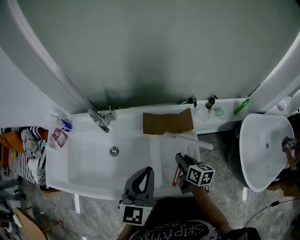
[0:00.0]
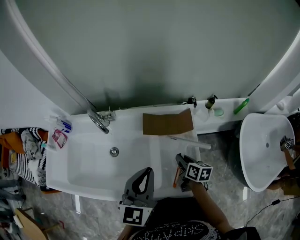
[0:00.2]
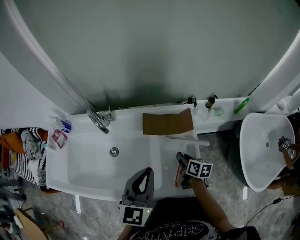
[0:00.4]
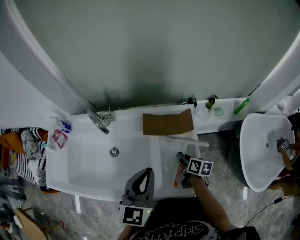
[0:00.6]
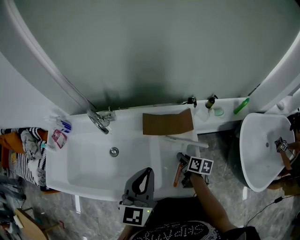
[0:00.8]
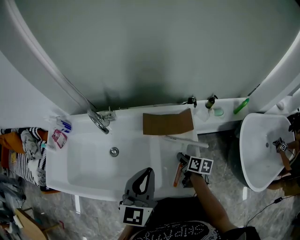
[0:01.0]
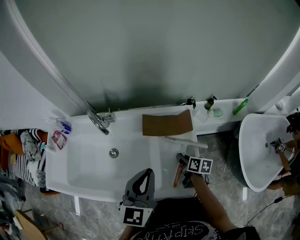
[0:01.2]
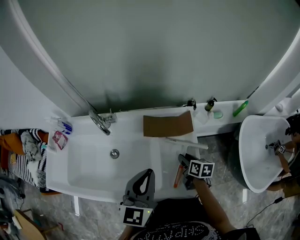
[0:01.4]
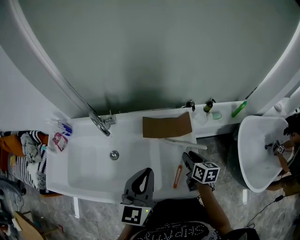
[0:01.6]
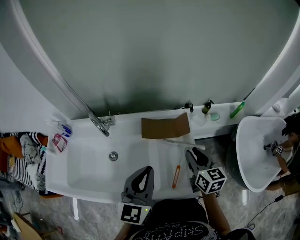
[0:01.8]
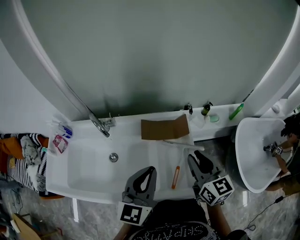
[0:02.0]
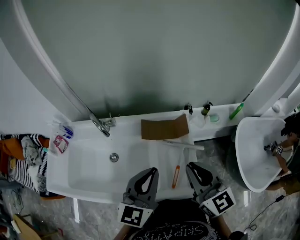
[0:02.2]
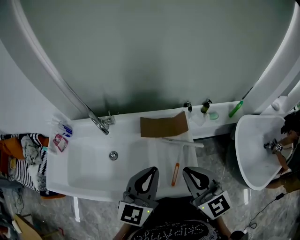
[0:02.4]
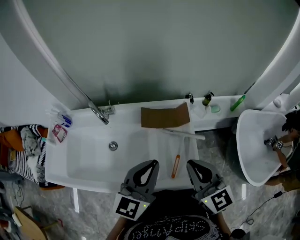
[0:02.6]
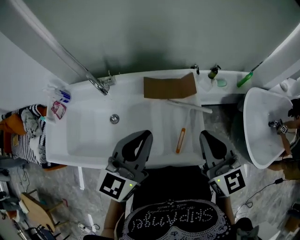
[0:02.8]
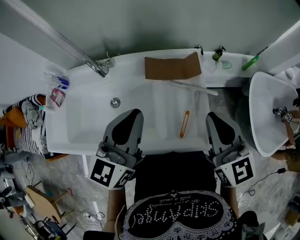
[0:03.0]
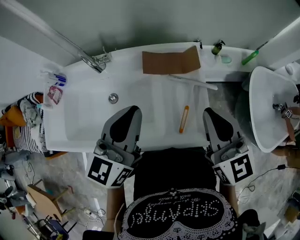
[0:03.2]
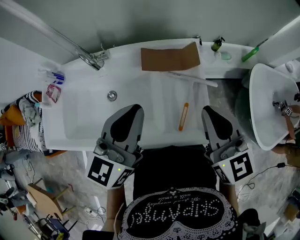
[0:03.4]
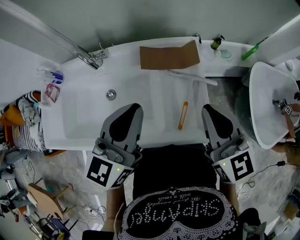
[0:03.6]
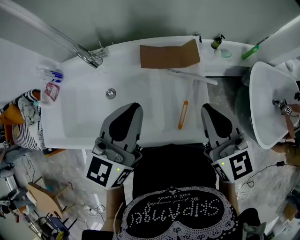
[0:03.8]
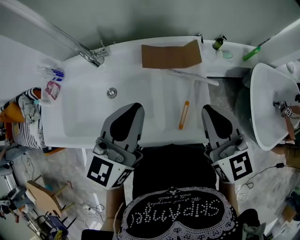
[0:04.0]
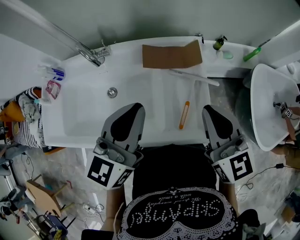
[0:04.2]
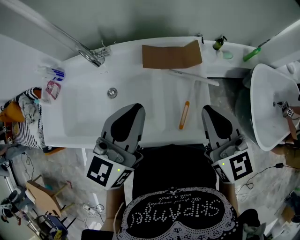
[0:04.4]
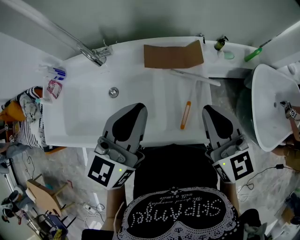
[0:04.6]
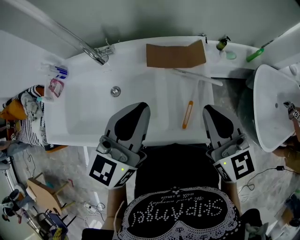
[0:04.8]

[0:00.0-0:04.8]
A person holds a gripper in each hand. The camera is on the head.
0.0 to 1.6 s: The right gripper moves roughly 5 cm downward and comes back.
1.6 to 3.2 s: The right gripper is displaced upward and backward by some 25 cm, changes its angle by approximately 40 degrees, and closes its fingers.
3.2 to 4.8 s: The grippers make only small movements.

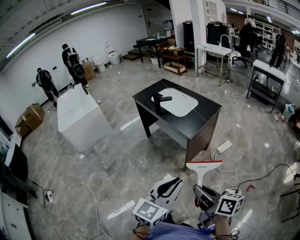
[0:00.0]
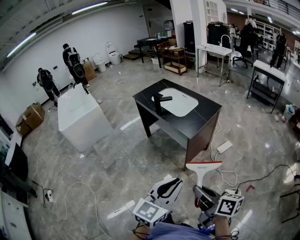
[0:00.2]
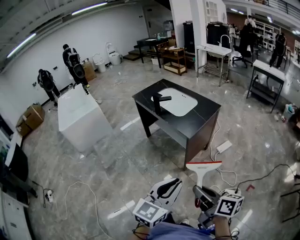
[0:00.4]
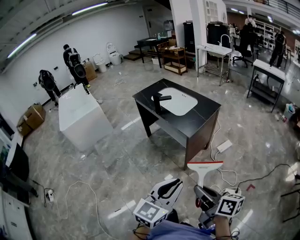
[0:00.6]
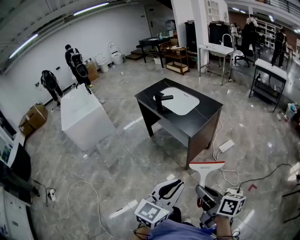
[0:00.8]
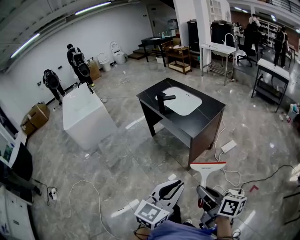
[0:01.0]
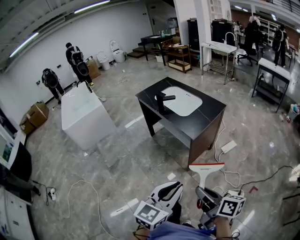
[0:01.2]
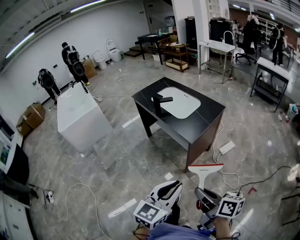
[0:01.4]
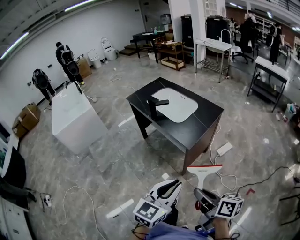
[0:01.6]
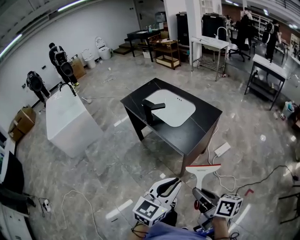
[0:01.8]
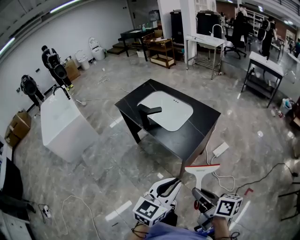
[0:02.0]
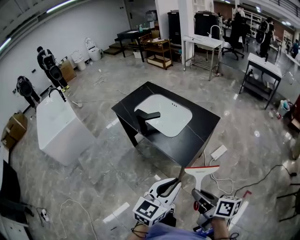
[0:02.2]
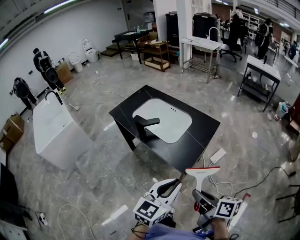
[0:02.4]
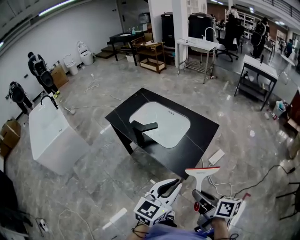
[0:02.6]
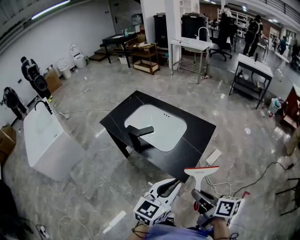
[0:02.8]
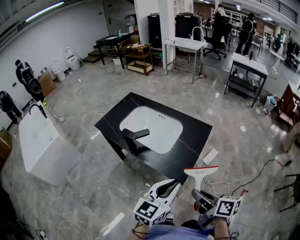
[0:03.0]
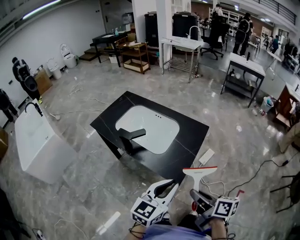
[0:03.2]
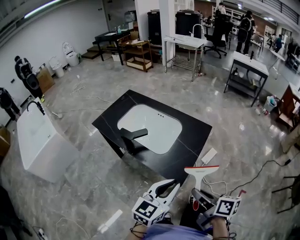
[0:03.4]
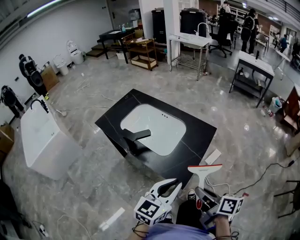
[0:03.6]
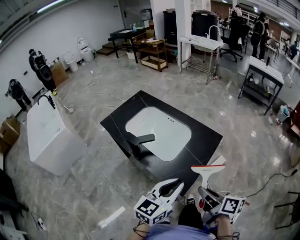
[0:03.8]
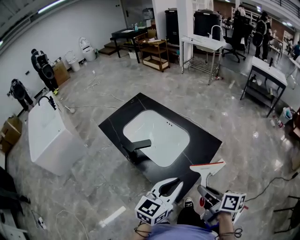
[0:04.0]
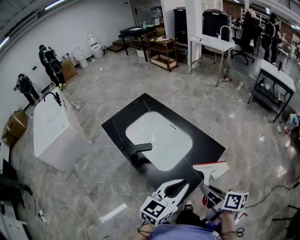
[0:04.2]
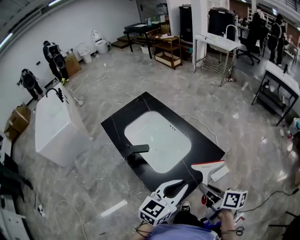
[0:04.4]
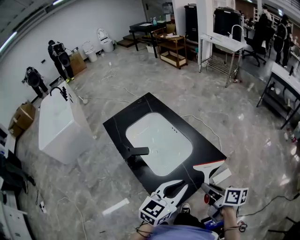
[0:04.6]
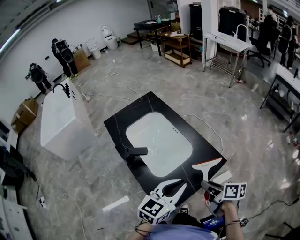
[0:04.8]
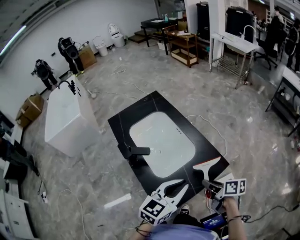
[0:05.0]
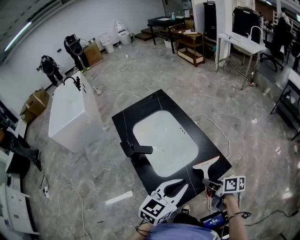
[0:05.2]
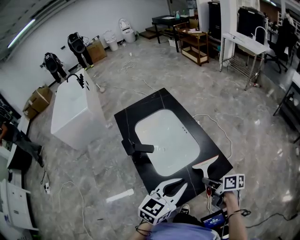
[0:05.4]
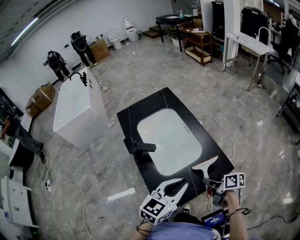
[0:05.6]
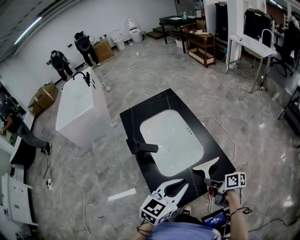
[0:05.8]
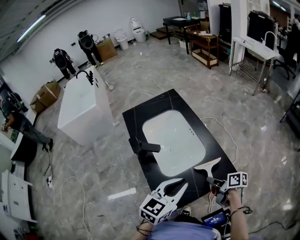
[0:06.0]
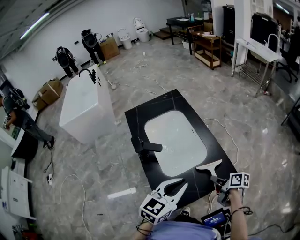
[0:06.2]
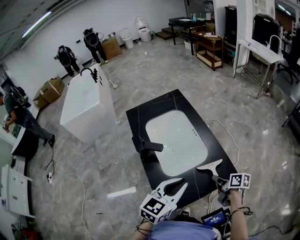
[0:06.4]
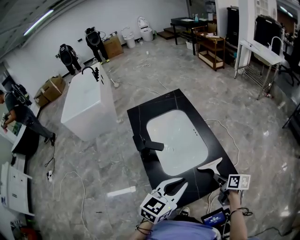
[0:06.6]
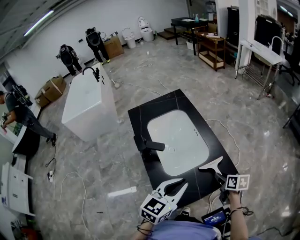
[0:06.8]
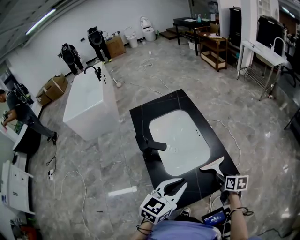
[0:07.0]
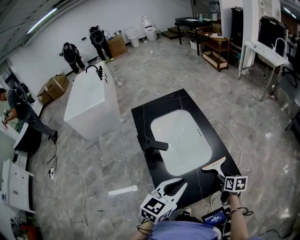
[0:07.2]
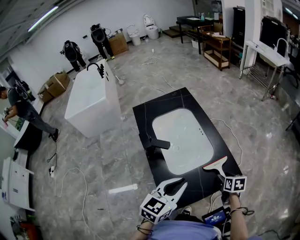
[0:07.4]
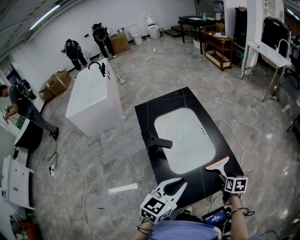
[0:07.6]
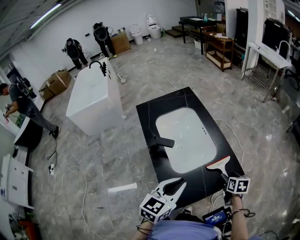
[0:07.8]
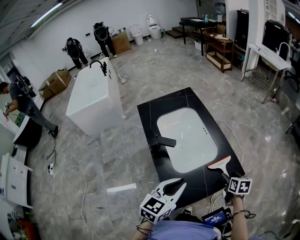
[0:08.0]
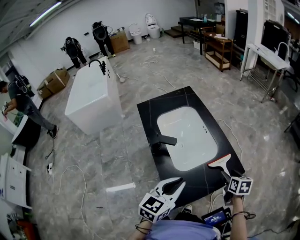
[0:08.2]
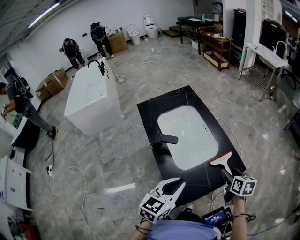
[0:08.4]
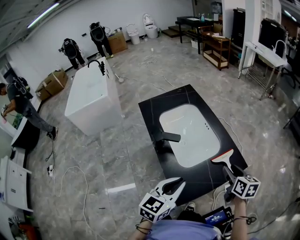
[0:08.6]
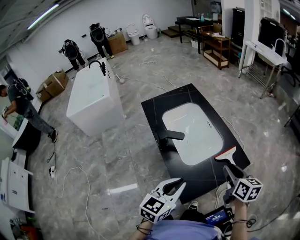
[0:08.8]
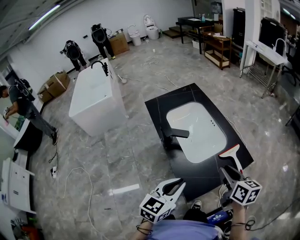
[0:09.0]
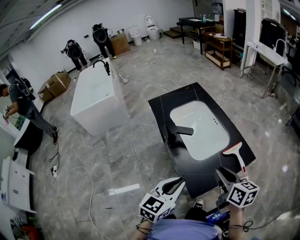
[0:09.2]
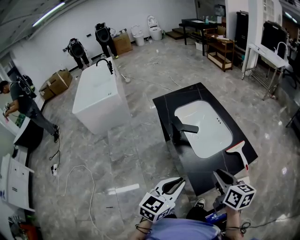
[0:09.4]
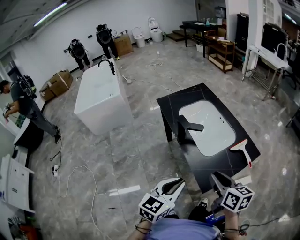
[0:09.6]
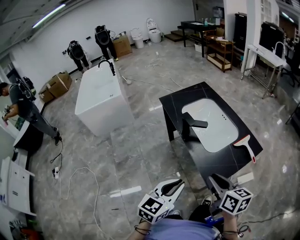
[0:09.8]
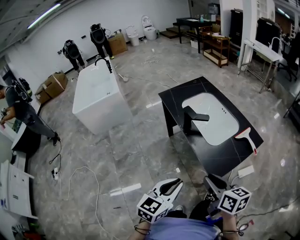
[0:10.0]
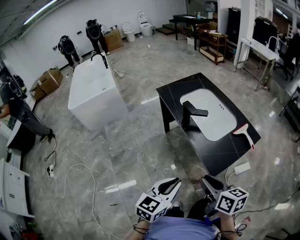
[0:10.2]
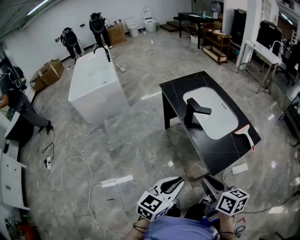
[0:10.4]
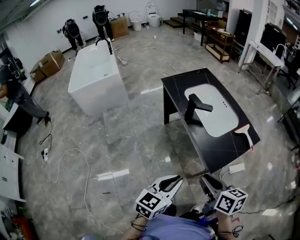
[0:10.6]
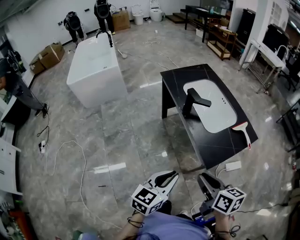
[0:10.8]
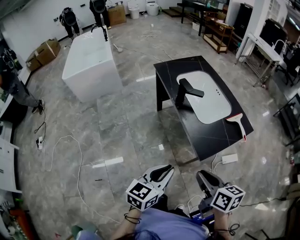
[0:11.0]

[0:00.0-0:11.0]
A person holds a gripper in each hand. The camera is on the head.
0.0 to 1.6 s: The grippers both shift forward by roughly 10 cm.
1.6 to 3.2 s: Both grippers move forward, some 25 cm.
3.2 to 4.8 s: The grippers both shift forward and to the right by roughly 25 cm. The right gripper turns by approximately 30 degrees.
4.8 to 6.2 s: The right gripper is displaced downward and forward by roughly 10 cm.
6.2 to 7.8 s: The left gripper is displaced to the left by about 5 cm. The right gripper swivels about 40 degrees, and opens.
7.8 to 9.4 s: The right gripper moves to the left, upward and backward, about 35 cm, swivels roughly 30 degrees, and closes, while the left gripper is displaced to the left and backward by about 15 cm.
9.4 to 11.0 s: Both grippers move backward and to the left, roughly 20 cm.

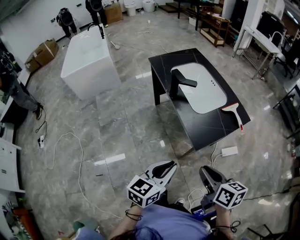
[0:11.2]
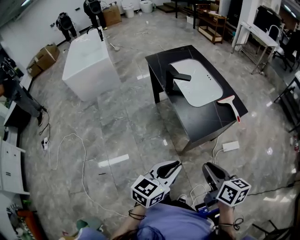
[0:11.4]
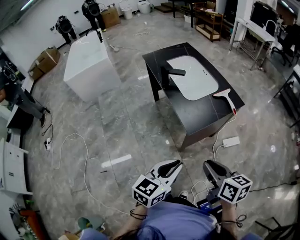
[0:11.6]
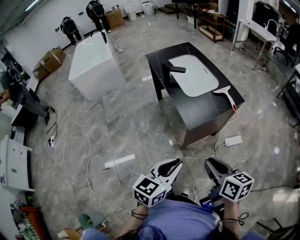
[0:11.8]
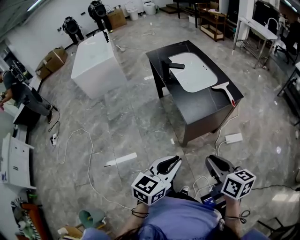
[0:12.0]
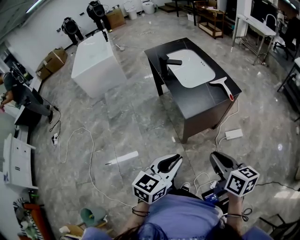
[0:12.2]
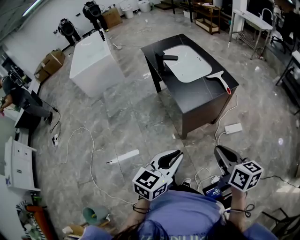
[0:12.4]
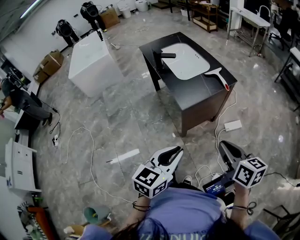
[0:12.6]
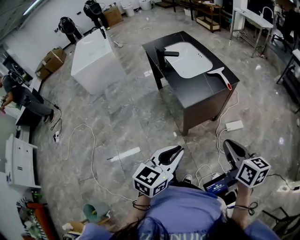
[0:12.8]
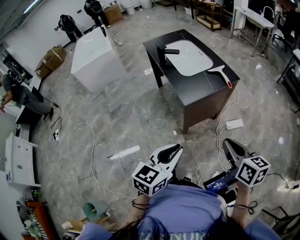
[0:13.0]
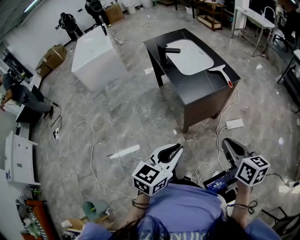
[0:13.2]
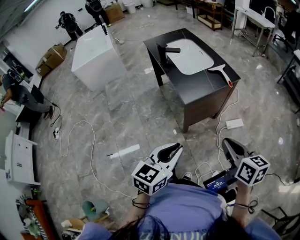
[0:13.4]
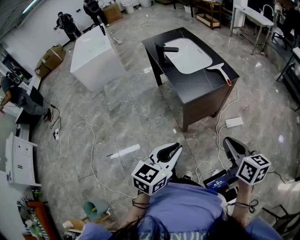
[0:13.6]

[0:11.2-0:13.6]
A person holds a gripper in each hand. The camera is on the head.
11.2 to 12.4 s: The right gripper heads to the right and backward, covering roughly 20 cm. Meanwhile the left gripper goes about 20 cm backward and to the right.
12.4 to 13.6 s: The grippers stay close to where they were, moving slightly.

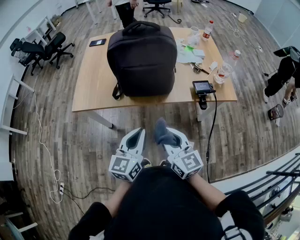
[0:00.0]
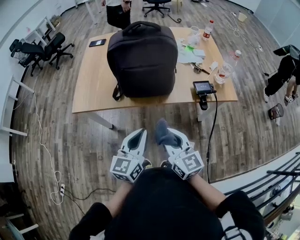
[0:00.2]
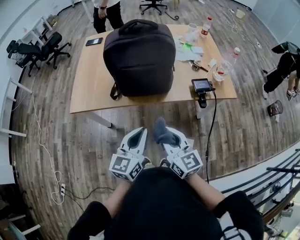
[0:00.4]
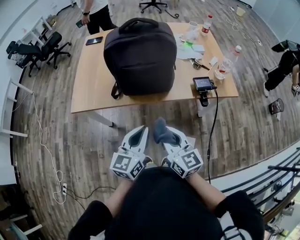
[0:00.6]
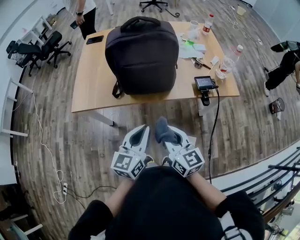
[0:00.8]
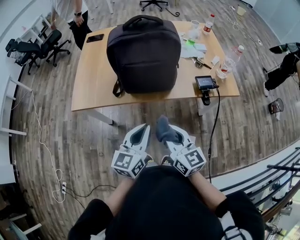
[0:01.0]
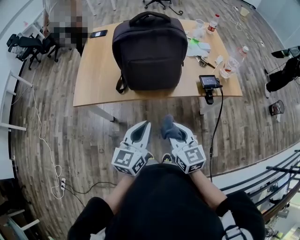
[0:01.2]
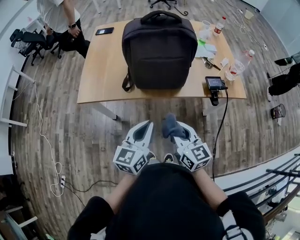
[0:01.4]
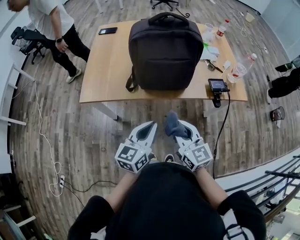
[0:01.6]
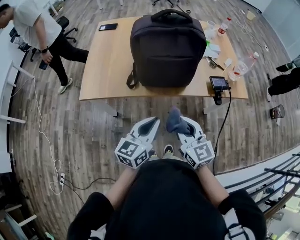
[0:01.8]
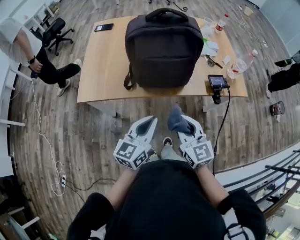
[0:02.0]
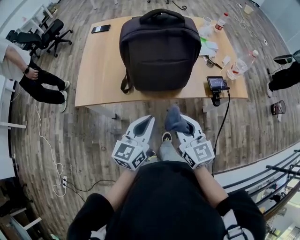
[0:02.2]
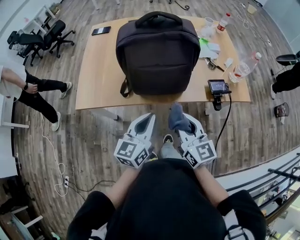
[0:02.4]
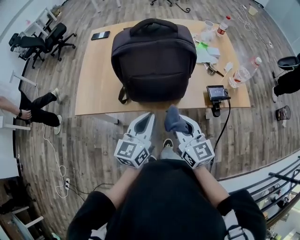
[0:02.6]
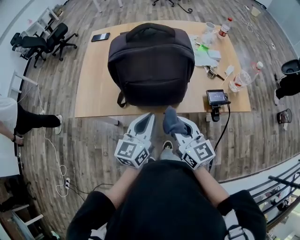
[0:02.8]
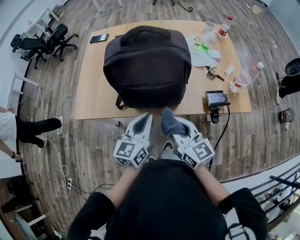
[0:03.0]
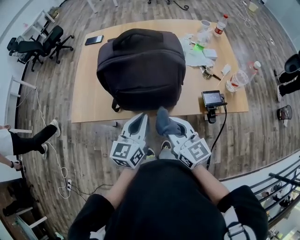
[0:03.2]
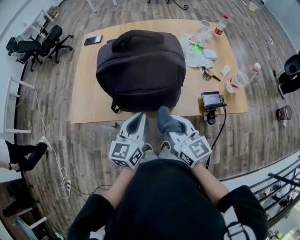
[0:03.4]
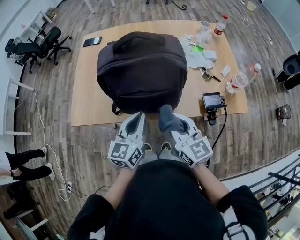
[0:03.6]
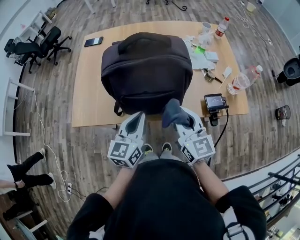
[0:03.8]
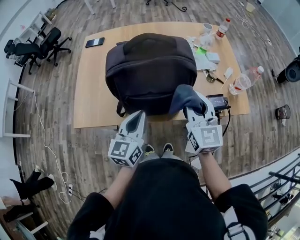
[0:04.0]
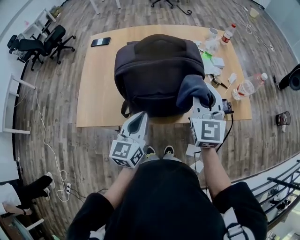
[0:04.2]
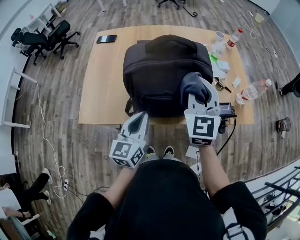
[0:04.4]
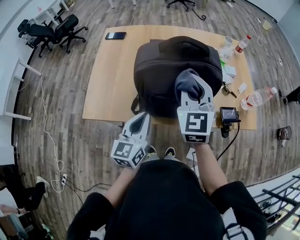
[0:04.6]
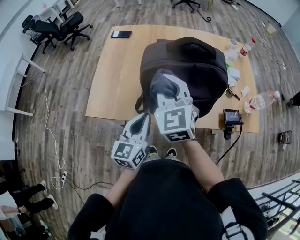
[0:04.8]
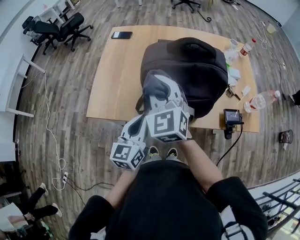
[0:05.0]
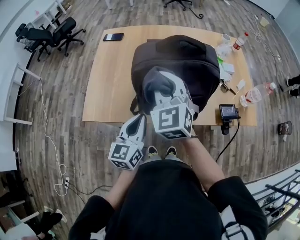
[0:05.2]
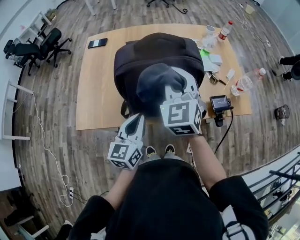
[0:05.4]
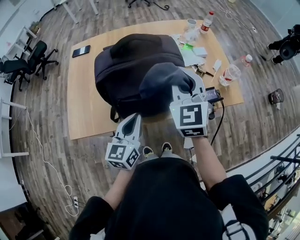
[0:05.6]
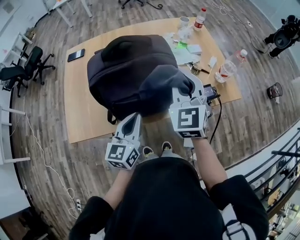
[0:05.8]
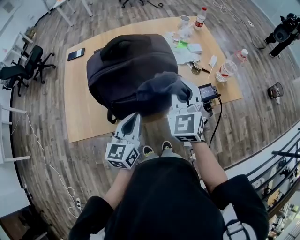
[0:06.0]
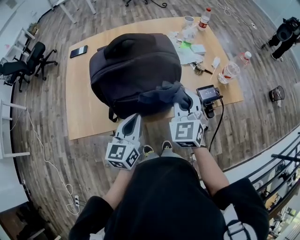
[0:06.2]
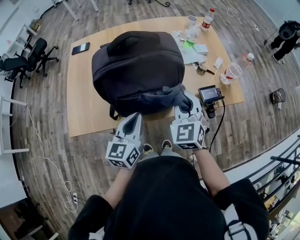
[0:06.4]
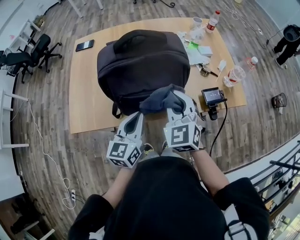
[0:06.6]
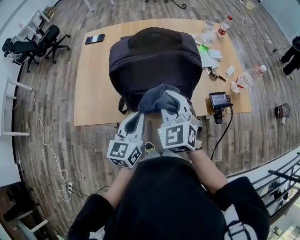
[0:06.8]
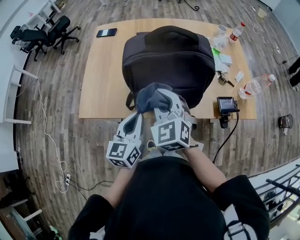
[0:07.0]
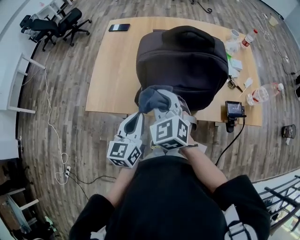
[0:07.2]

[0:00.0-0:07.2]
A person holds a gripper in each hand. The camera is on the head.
0.0 to 1.4 s: The right gripper changes place by some 5 cm.
1.4 to 2.8 s: The two grippers go some 15 cm forward.
2.8 to 4.4 s: The left gripper moves to the left and forward, approximately 10 cm, while the right gripper moves forward and upward, approximately 20 cm, and rotates some 40 degrees.
4.4 to 5.8 s: The right gripper travels to the left and back again, some 20 cm each way. Meanwhile the left gripper shifts roughly 5 cm to the right.
5.8 to 7.2 s: The right gripper is displaced to the left and downward by approximately 25 cm, and turns by approximately 30 degrees. Meanwhile the left gripper is displaced to the left and backward by approximately 15 cm.
